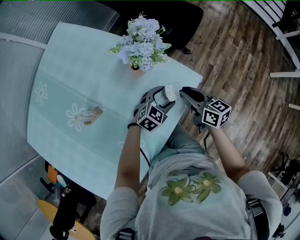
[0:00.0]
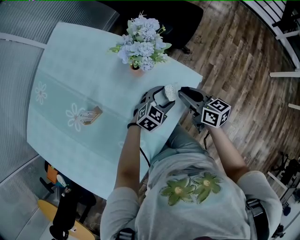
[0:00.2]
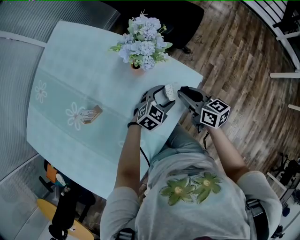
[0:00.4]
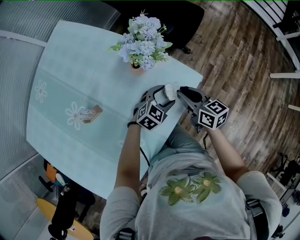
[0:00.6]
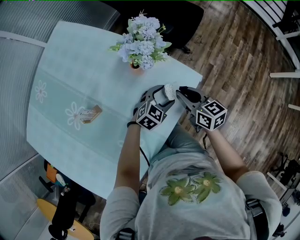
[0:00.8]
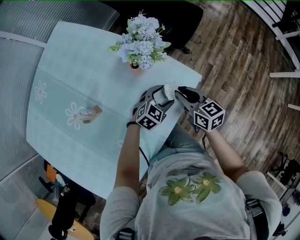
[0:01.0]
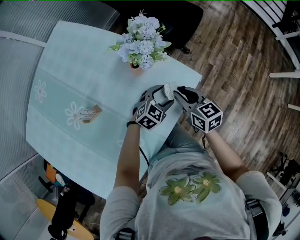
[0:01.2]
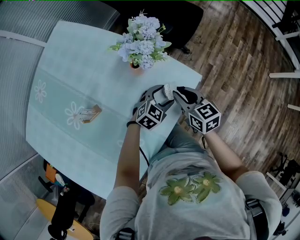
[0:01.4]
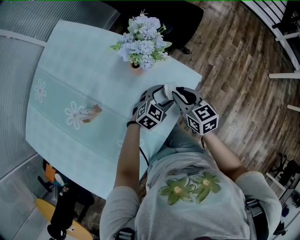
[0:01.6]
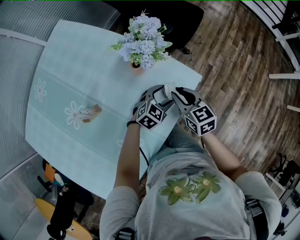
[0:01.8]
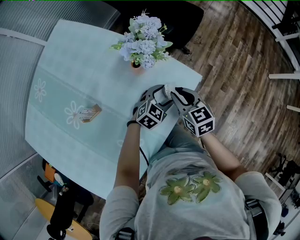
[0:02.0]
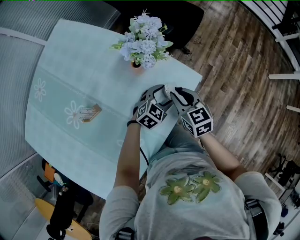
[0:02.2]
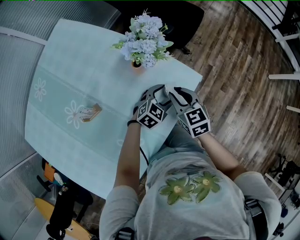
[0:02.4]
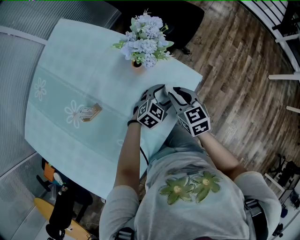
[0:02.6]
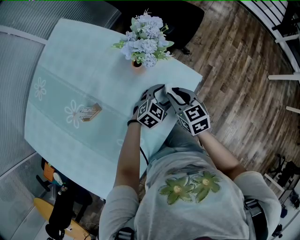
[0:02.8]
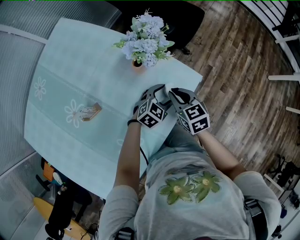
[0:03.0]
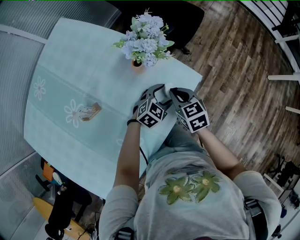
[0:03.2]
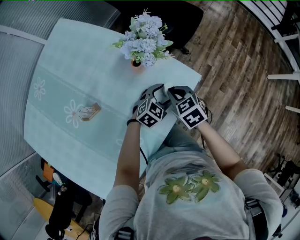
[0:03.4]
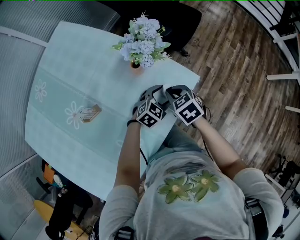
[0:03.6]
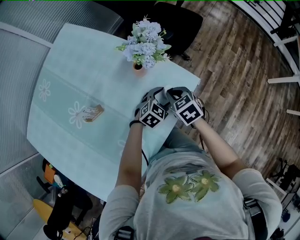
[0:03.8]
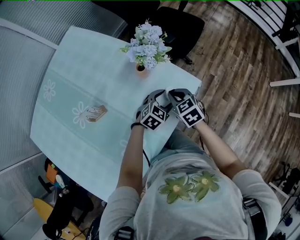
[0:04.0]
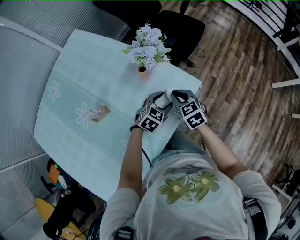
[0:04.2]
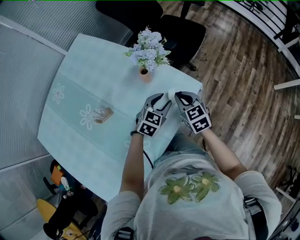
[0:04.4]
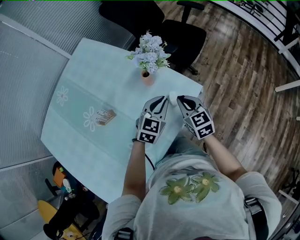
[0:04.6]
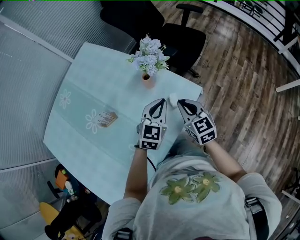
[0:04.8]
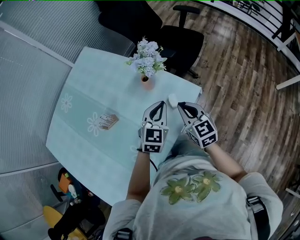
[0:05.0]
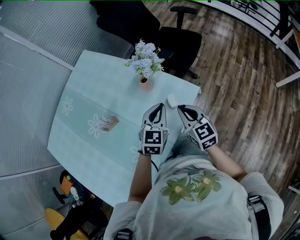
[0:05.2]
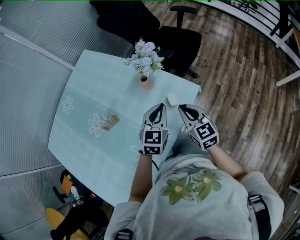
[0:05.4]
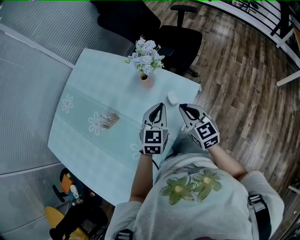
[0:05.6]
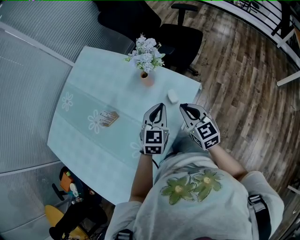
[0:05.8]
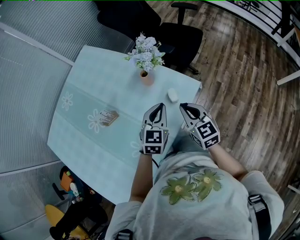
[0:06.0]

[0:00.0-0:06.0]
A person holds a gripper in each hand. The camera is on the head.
0:00.0 to 0:01.6: The right gripper rotates about 20 degrees.
0:01.6 to 0:03.0: There are only small adjustments of the grippers.
0:03.0 to 0:04.4: The left gripper travels upward by some 10 cm, and closes.
0:04.4 to 0:06.0: The left gripper goes roughly 10 cm upward, rotates some 20 degrees, and closes its fingers. Meanwhile the right gripper shifts about 10 cm backward and upward.

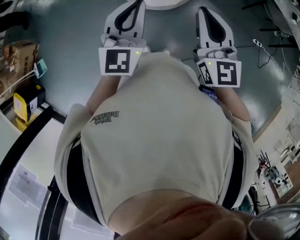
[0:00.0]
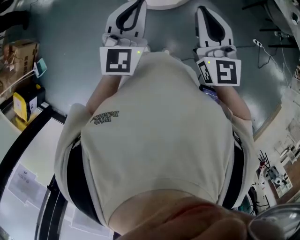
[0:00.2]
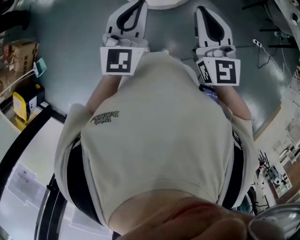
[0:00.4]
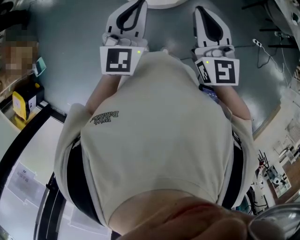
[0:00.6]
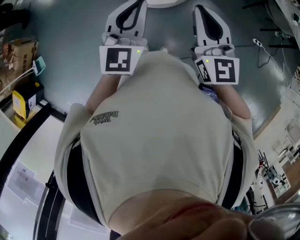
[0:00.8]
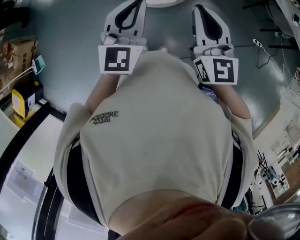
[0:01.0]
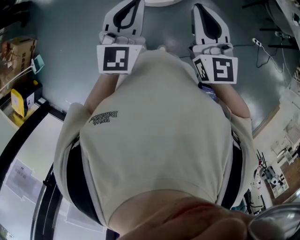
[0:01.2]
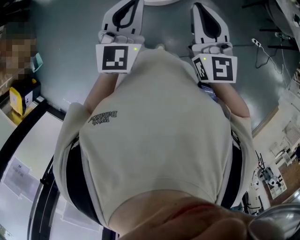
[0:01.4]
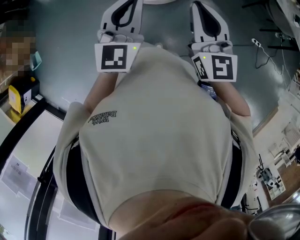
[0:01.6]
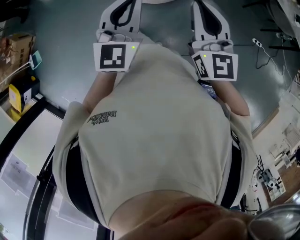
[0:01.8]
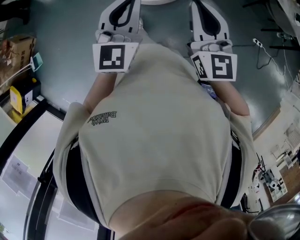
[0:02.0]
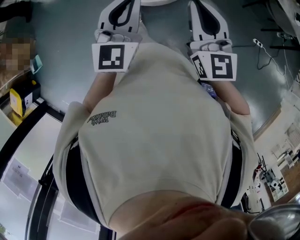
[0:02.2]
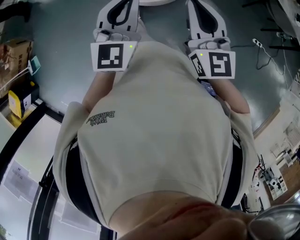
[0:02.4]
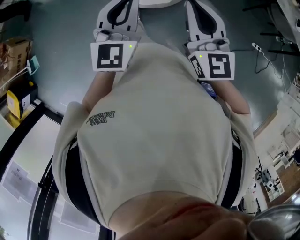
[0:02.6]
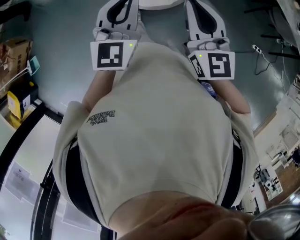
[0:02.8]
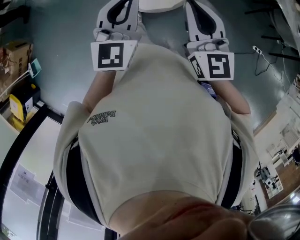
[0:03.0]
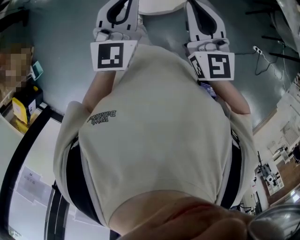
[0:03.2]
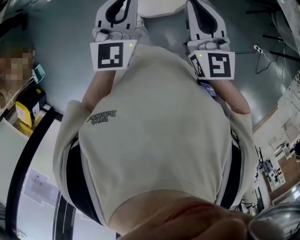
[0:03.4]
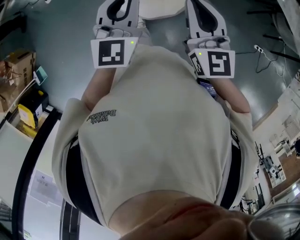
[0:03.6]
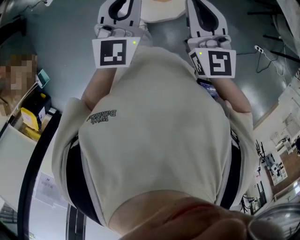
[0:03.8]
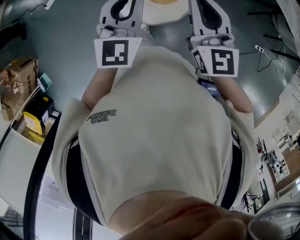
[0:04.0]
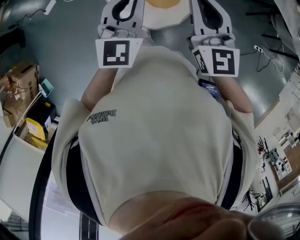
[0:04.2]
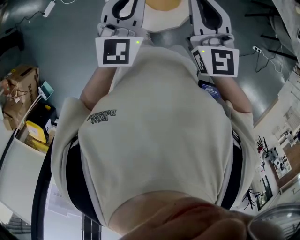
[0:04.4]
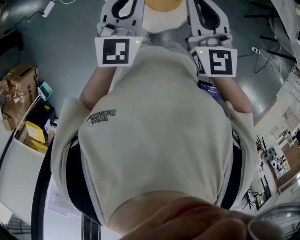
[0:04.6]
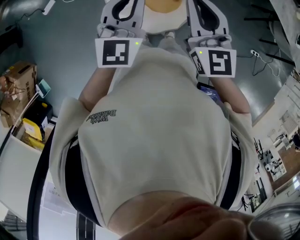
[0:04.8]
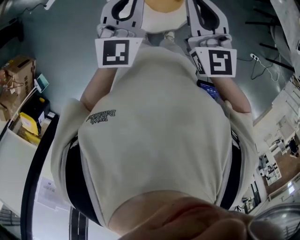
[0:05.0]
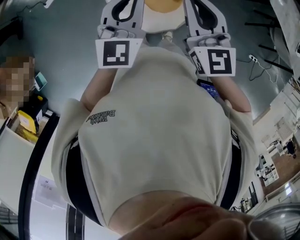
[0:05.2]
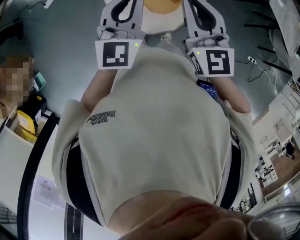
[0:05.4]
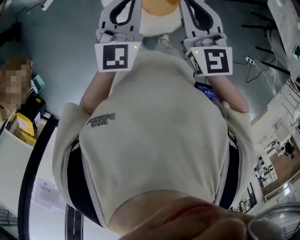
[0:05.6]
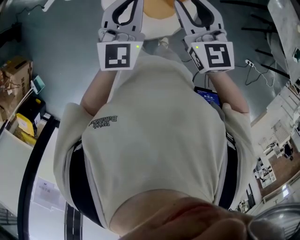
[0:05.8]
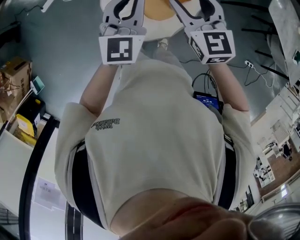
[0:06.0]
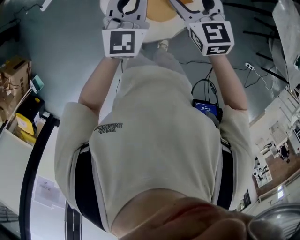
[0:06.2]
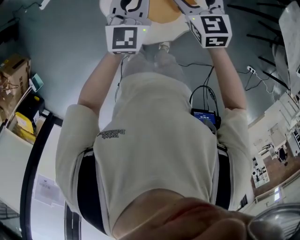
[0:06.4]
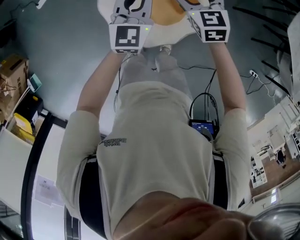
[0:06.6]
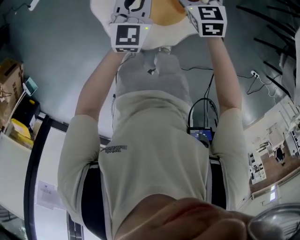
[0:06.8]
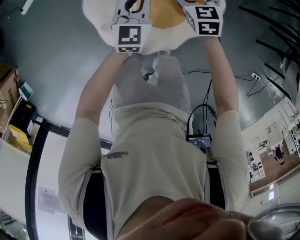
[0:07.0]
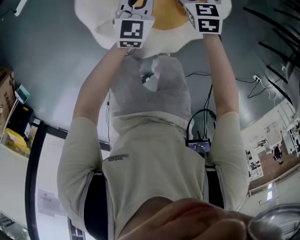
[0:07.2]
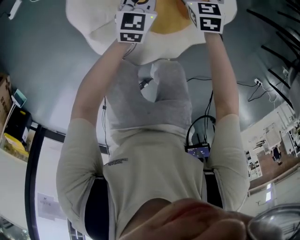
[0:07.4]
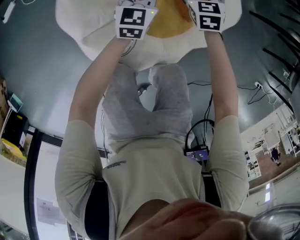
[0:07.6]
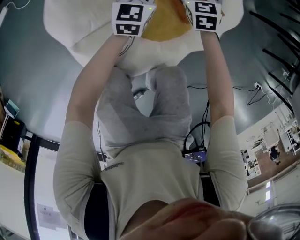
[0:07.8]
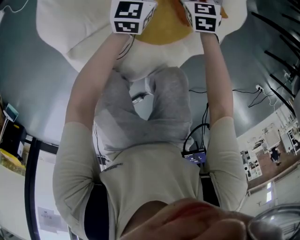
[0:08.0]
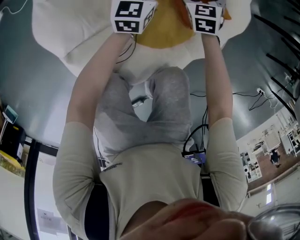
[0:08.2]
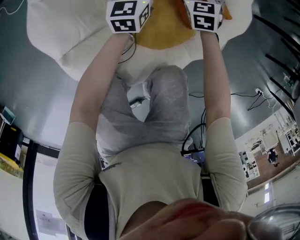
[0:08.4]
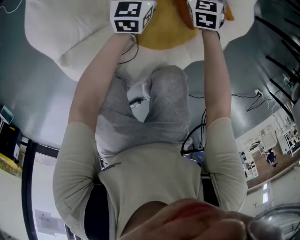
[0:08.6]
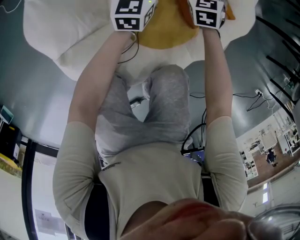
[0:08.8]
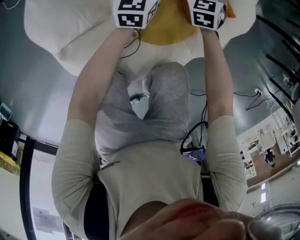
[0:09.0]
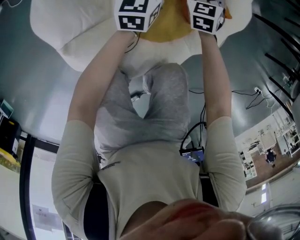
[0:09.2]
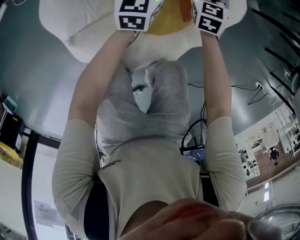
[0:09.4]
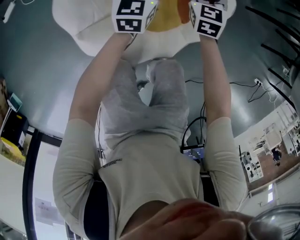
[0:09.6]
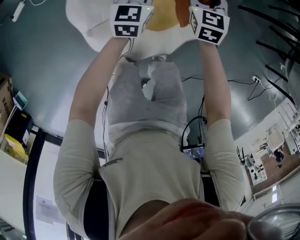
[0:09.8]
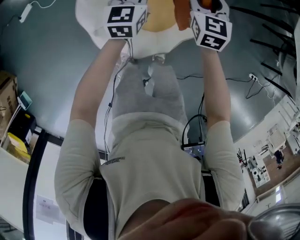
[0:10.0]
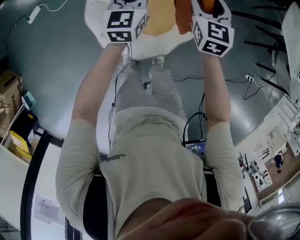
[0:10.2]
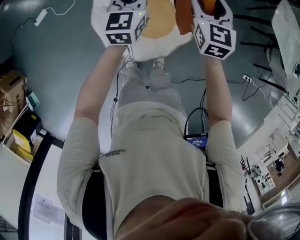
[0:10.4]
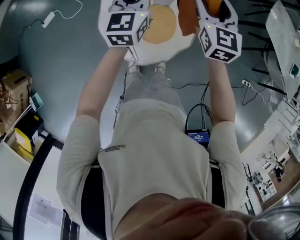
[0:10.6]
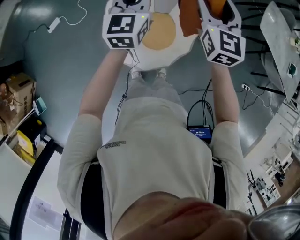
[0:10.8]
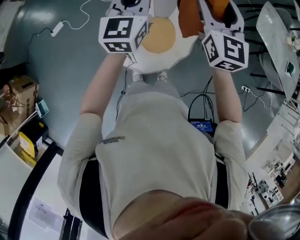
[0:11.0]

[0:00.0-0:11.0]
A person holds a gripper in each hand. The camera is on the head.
0:00.0 to 0:01.6: The two grippers go approximately 5 cm to the right.
0:01.6 to 0:03.2: The two grippers go some 20 cm forward.
0:03.2 to 0:04.8: The grippers both shift forward by about 25 cm.
0:04.8 to 0:06.2: The grippers both shift forward and downward by approximately 15 cm. The right gripper turns by approximately 20 degrees, and opens up.
0:06.2 to 0:07.8: The two grippers go about 70 cm downward. The right gripper turns by about 20 degrees. The left gripper turns by roughly 20 degrees.
0:07.8 to 0:09.4: The left gripper travels downward and back again, some 10 cm each way. Meanwhile the right gripper moves roughly 10 cm downward and comes back, and closes up.
0:09.4 to 0:11.0: Both grippers move upward, about 80 cm. The left gripper swivels some 30 degrees, while the right gripper angles its fingers upward, by some 40 degrees.

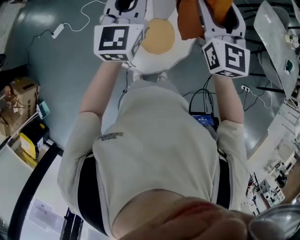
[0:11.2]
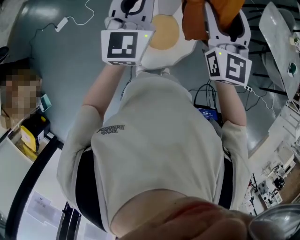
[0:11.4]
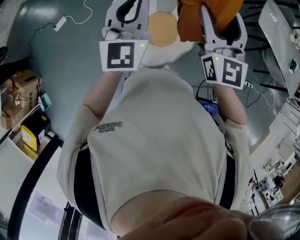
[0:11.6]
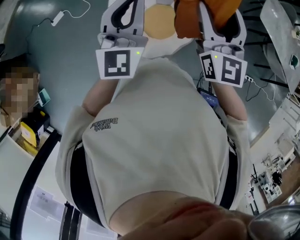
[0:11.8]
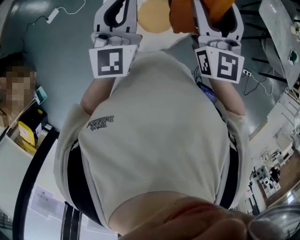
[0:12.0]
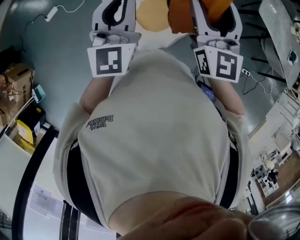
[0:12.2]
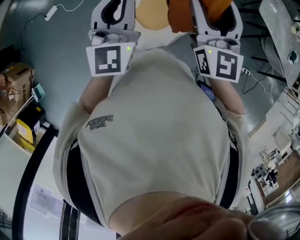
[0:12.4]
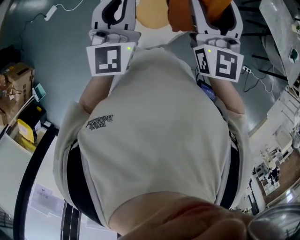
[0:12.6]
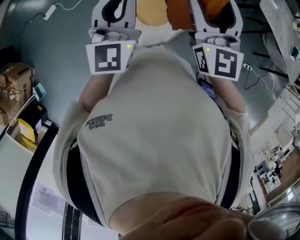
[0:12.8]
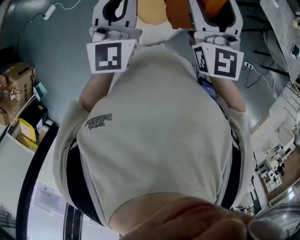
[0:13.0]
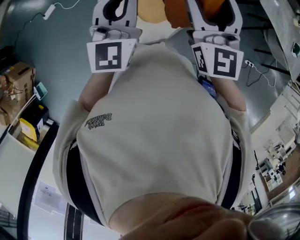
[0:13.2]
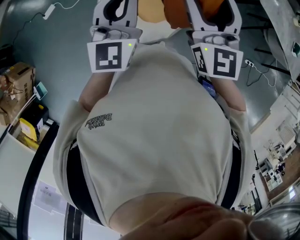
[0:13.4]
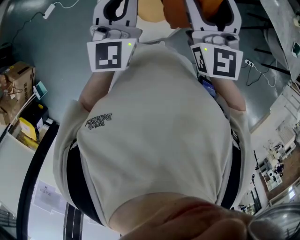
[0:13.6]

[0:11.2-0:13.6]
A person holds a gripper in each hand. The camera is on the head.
0:11.2 to 0:12.4: Both grippers move backward, roughly 10 cm.
0:12.4 to 0:13.6: The grippers stay close to where they were, moving slightly.

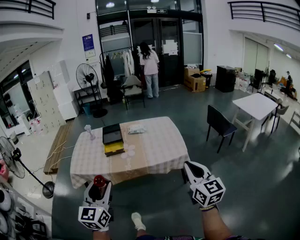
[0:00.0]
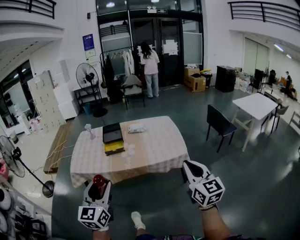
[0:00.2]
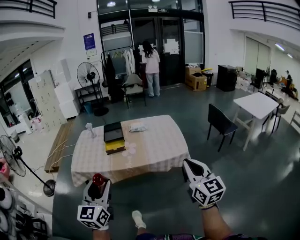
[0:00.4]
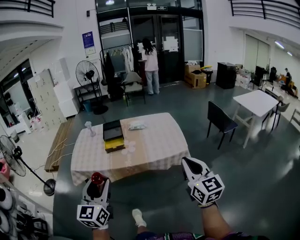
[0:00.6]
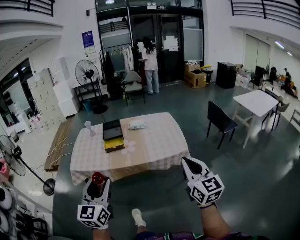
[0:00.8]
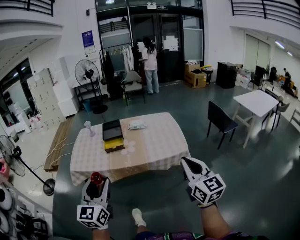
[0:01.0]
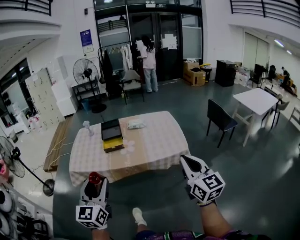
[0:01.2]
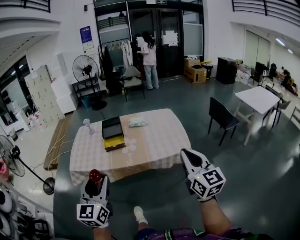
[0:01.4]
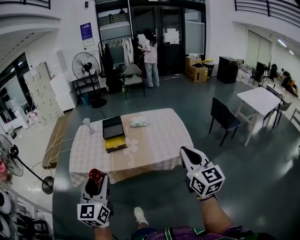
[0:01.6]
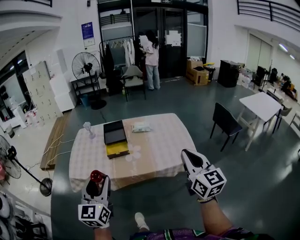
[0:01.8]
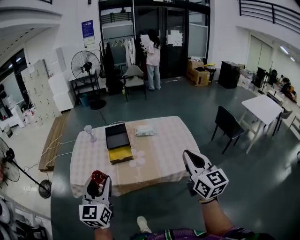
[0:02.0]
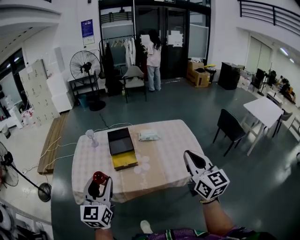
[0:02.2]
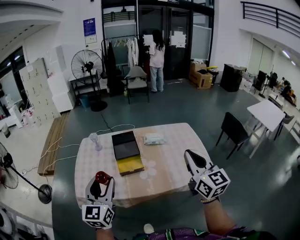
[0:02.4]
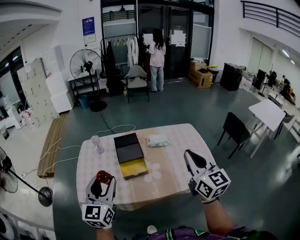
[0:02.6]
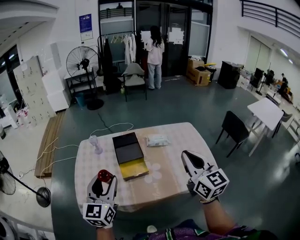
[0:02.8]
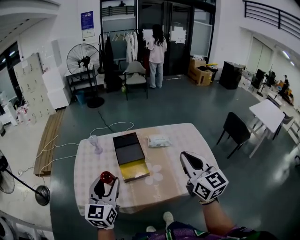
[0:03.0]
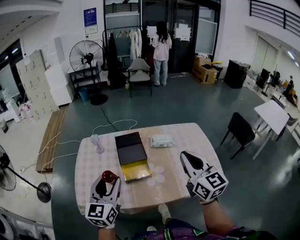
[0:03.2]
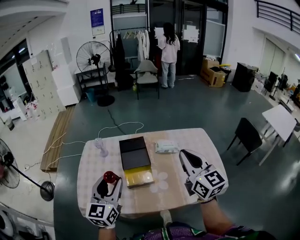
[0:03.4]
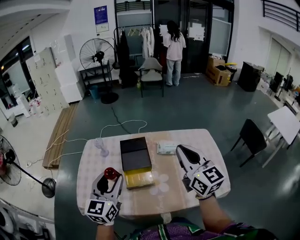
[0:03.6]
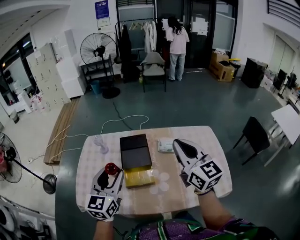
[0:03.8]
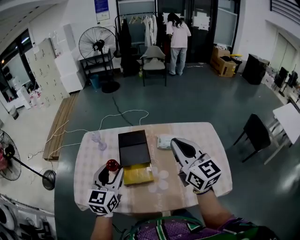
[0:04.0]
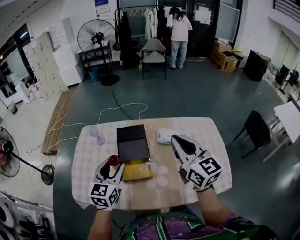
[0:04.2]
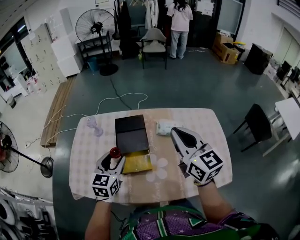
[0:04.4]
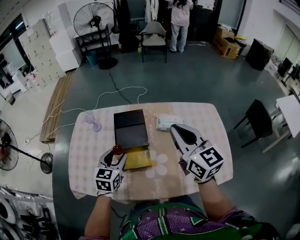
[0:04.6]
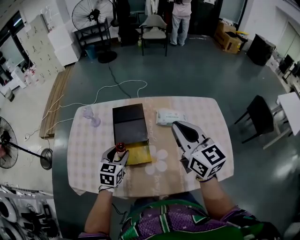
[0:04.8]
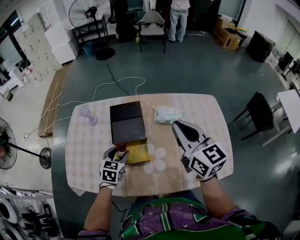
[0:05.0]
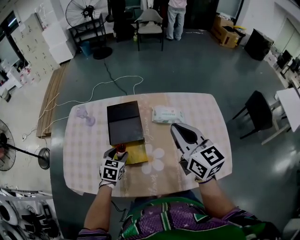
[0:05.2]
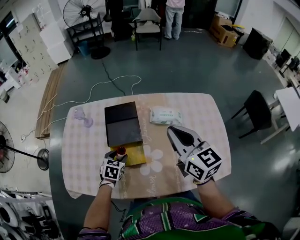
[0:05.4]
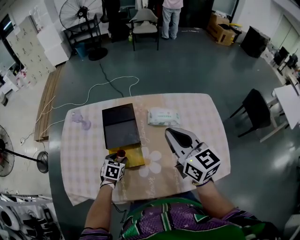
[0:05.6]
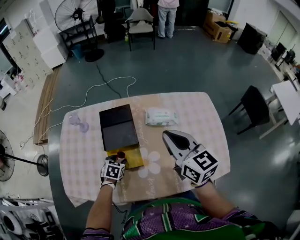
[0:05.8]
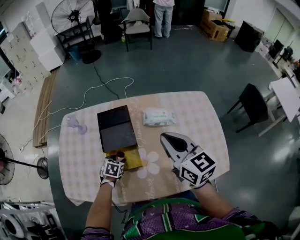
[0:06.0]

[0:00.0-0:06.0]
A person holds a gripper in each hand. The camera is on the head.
0:00.0 to 0:01.6: The two grippers go about 10 cm forward.
0:01.6 to 0:03.0: Both grippers travel together forward and to the left, roughly 40 cm.
0:03.0 to 0:04.4: The left gripper shifts about 25 cm forward, downward and to the right, while the right gripper heads forward, covering some 20 cm.
0:04.4 to 0:06.0: The right gripper travels downward by some 10 cm. The left gripper shifts approximately 30 cm downward, and tips its fingers downward by some 40 degrees.
